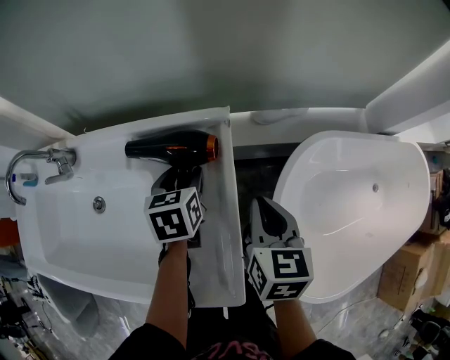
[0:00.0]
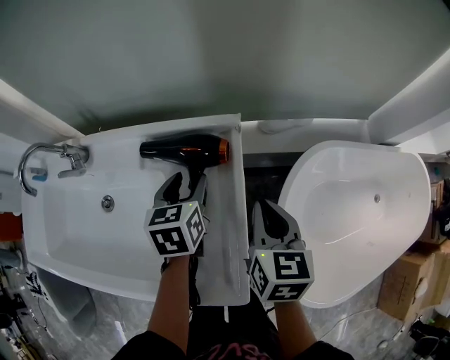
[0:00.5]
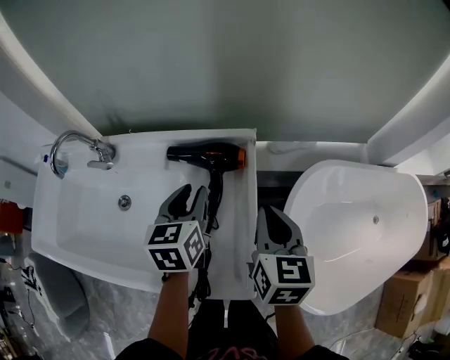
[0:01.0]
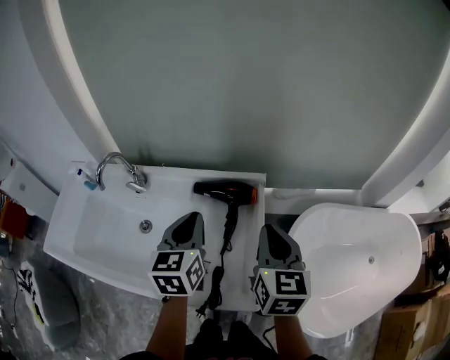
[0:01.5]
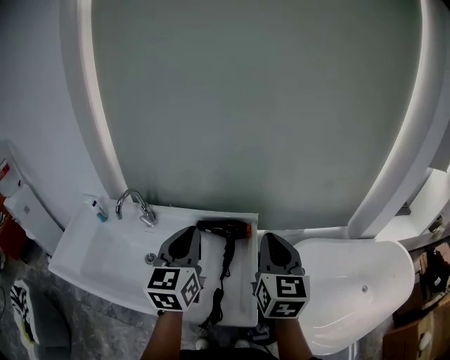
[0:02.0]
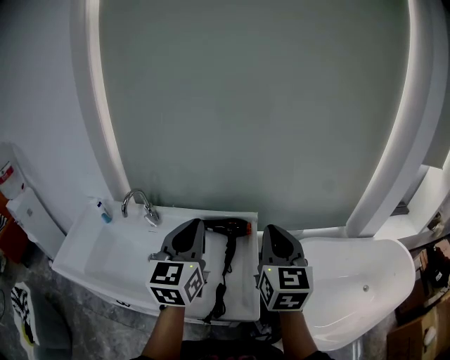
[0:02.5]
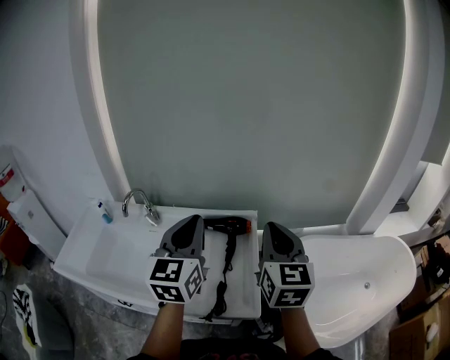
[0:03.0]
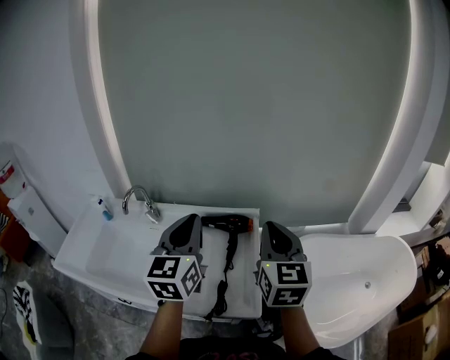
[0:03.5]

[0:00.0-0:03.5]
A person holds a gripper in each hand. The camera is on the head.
0:00.0 to 0:02.0: The right gripper heads upward, covering some 30 cm, and changes its angle by roughly 30 degrees. The left gripper travels upward and backward by some 40 cm, angles its fingers upward, by roughly 40 degrees, and closes up.
0:02.0 to 0:03.5: There are only small adjustments of the grippers.

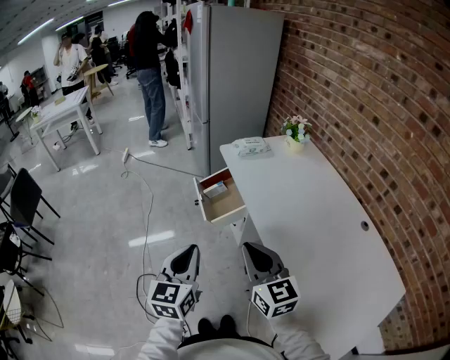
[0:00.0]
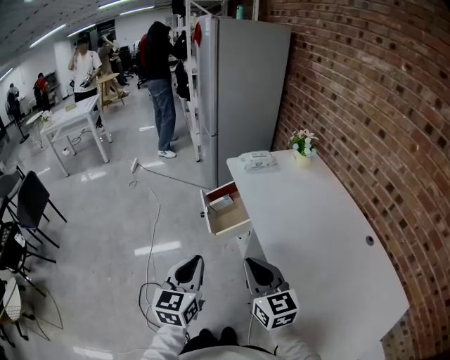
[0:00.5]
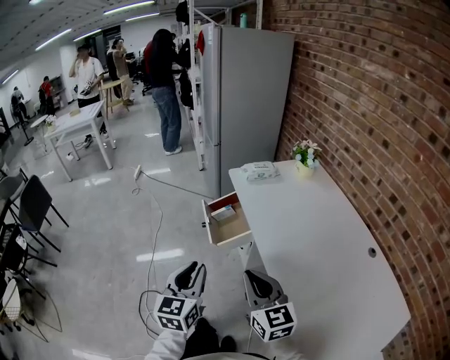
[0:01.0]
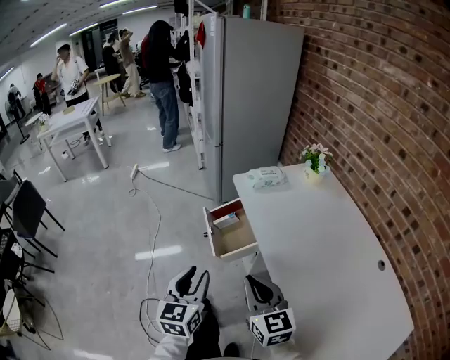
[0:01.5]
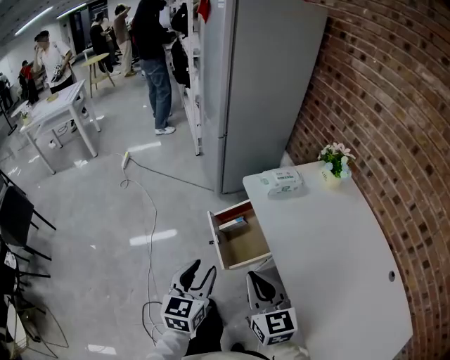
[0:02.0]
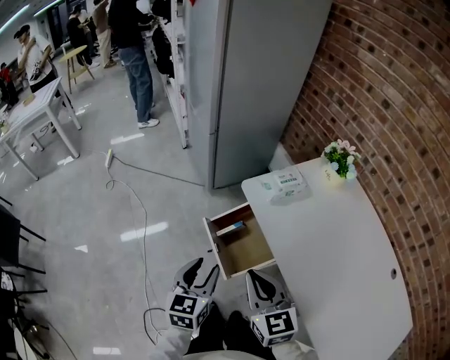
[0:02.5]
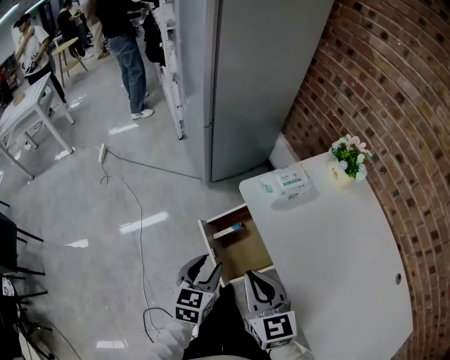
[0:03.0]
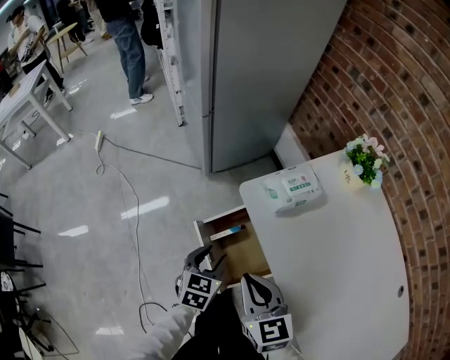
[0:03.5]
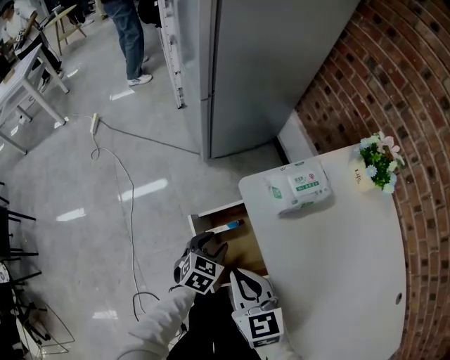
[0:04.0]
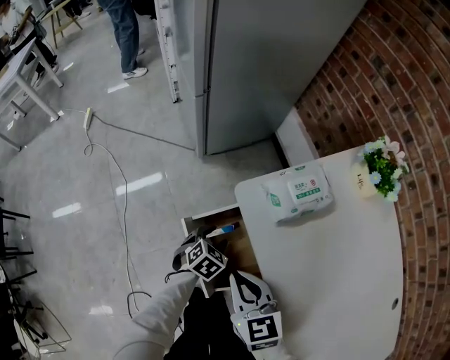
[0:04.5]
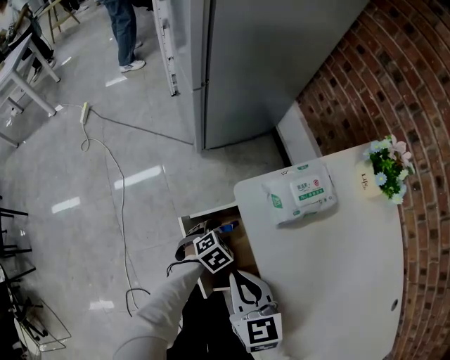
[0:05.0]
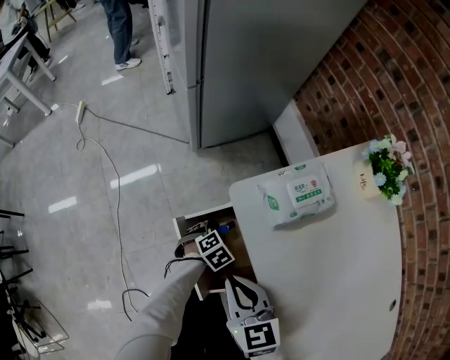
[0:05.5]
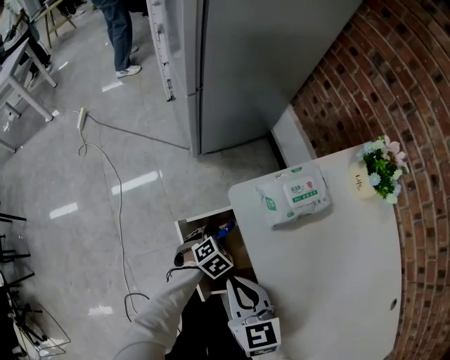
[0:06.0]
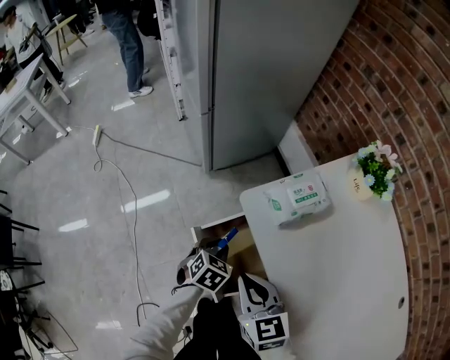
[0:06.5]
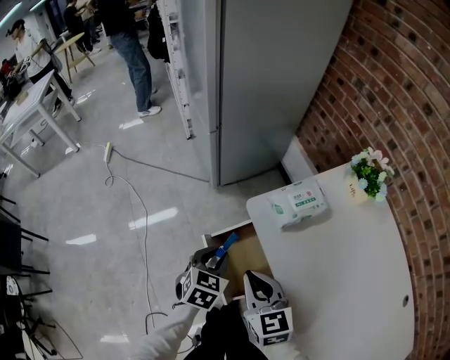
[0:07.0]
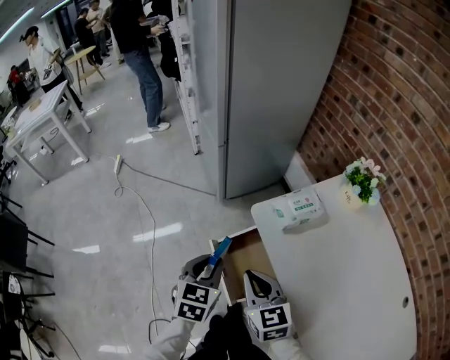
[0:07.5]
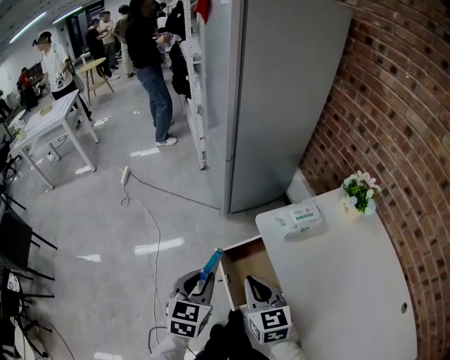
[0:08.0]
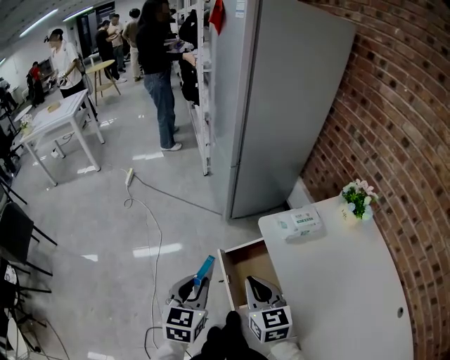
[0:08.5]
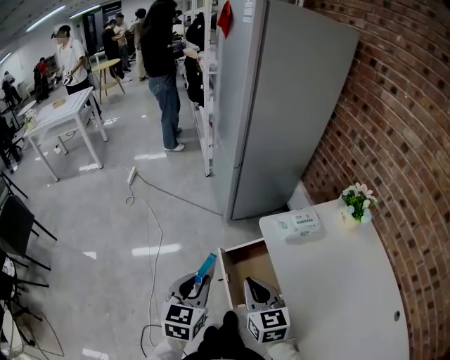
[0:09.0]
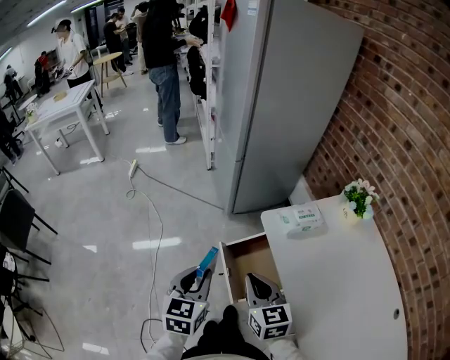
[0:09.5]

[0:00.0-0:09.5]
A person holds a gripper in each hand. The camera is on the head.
0:00.0 to 0:02.0: Both grippers travel together forward, about 25 cm. The left gripper opens its fingers.
0:02.0 to 0:04.0: The left gripper travels downward and forward by approximately 35 cm, and turns by about 40 degrees, while the right gripper heads forward and downward, covering about 25 cm.
0:04.0 to 0:05.5: The left gripper goes approximately 15 cm downward, and rotates about 30 degrees.
0:05.5 to 0:07.5: The left gripper heads upward, covering approximately 35 cm, and angles its fingers upward, by some 30 degrees. Meanwhile the right gripper moves upward, about 10 cm.
0:07.5 to 0:09.5: The left gripper moves backward, to the left and upward, approximately 15 cm. Meanwhile the right gripper shifts by about 5 cm.

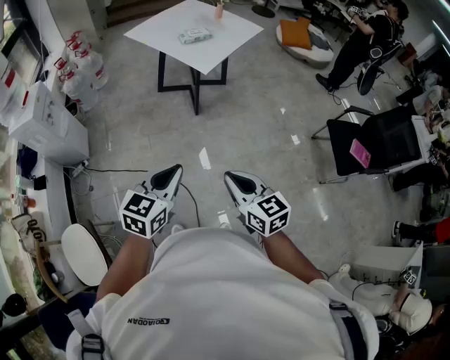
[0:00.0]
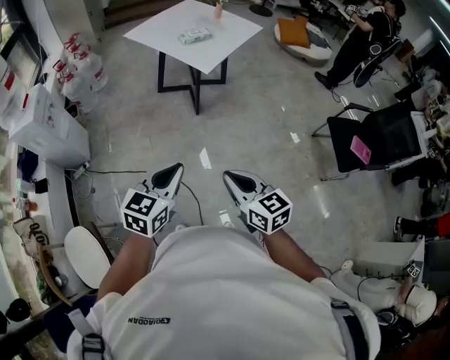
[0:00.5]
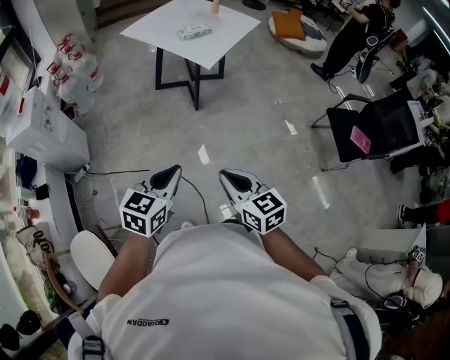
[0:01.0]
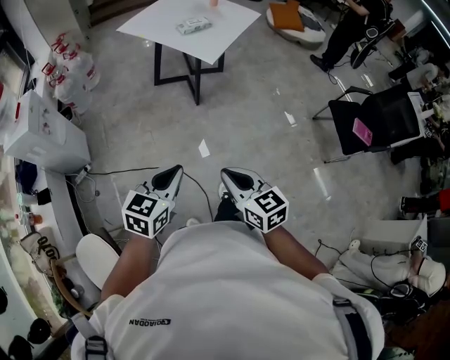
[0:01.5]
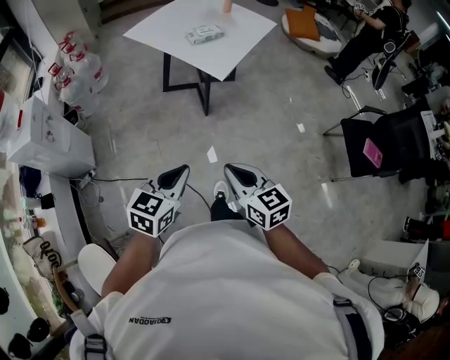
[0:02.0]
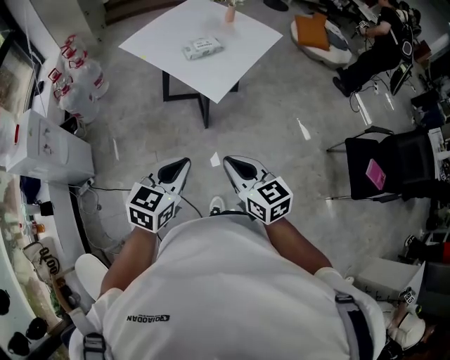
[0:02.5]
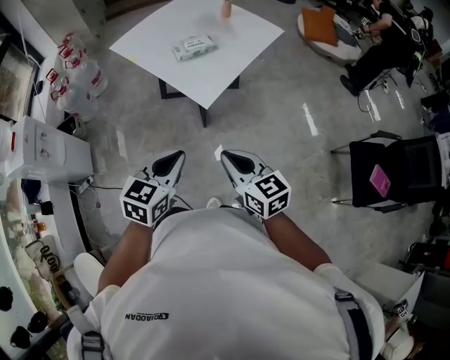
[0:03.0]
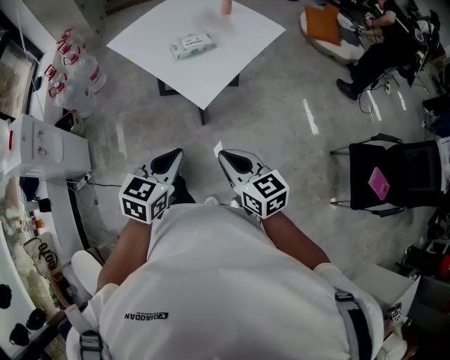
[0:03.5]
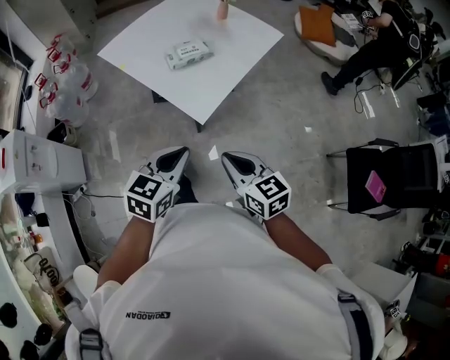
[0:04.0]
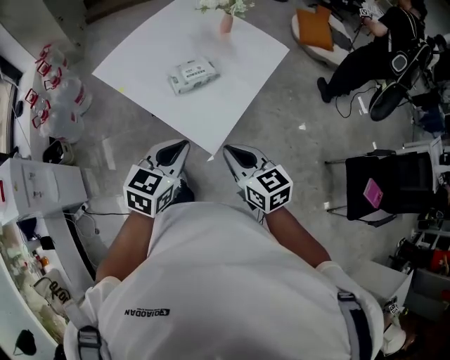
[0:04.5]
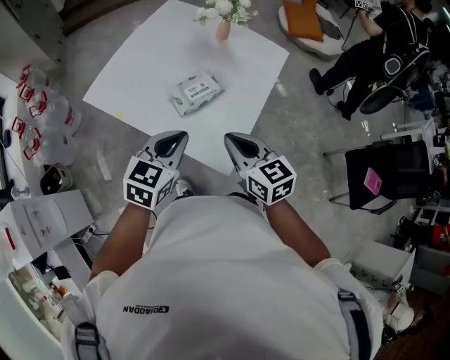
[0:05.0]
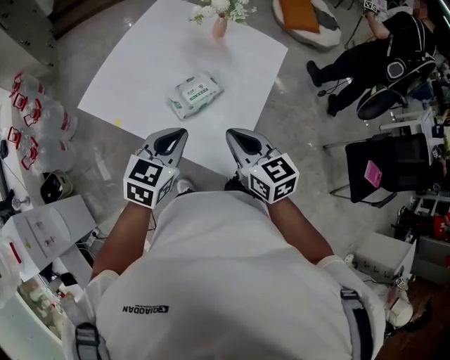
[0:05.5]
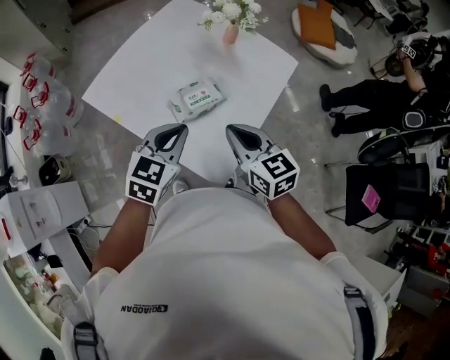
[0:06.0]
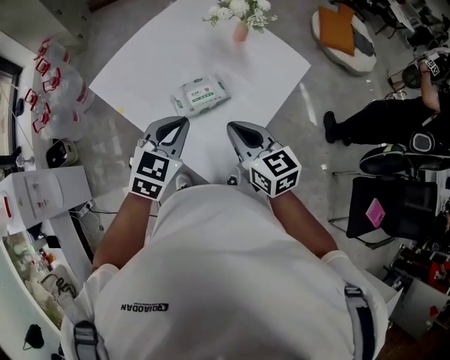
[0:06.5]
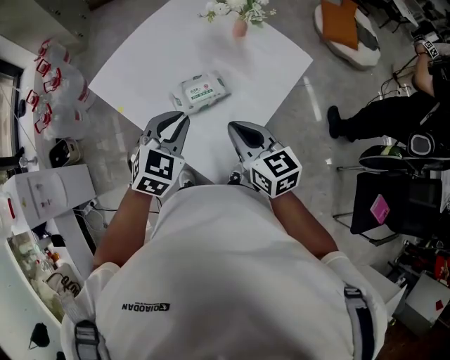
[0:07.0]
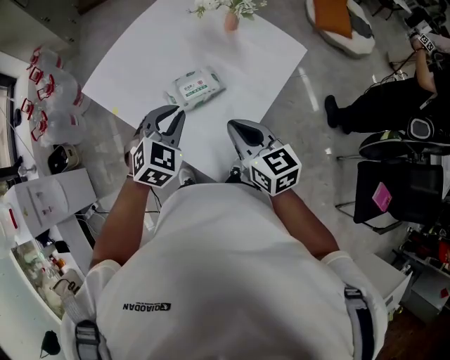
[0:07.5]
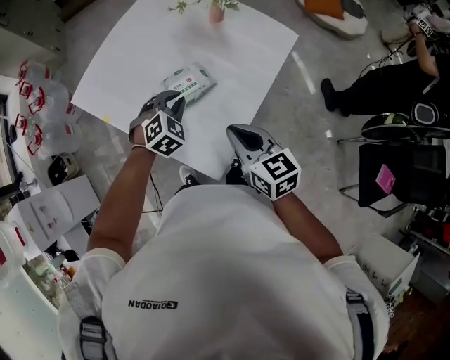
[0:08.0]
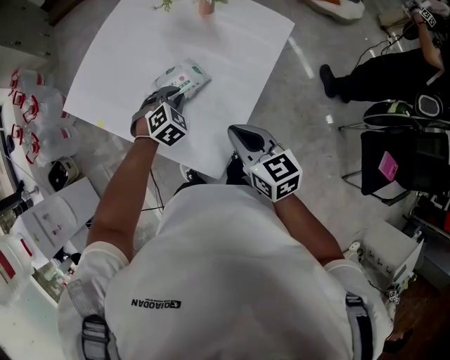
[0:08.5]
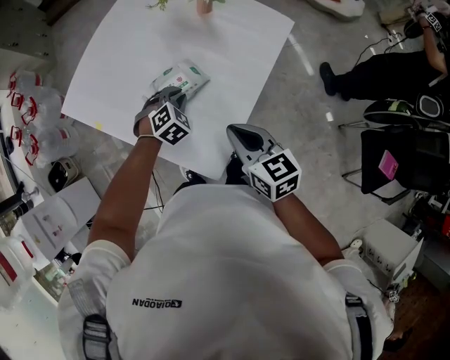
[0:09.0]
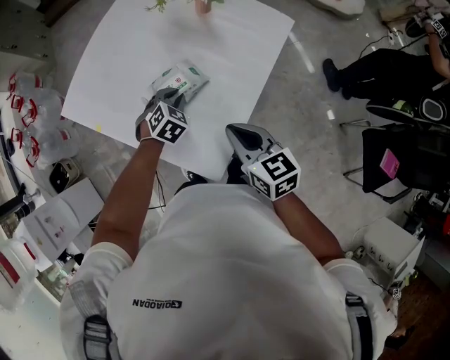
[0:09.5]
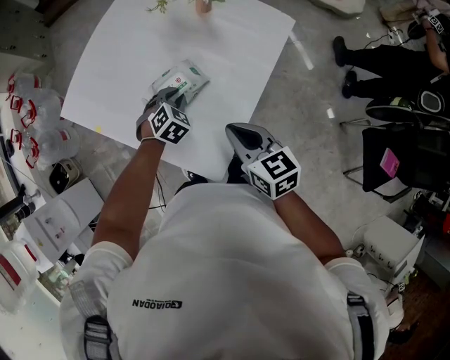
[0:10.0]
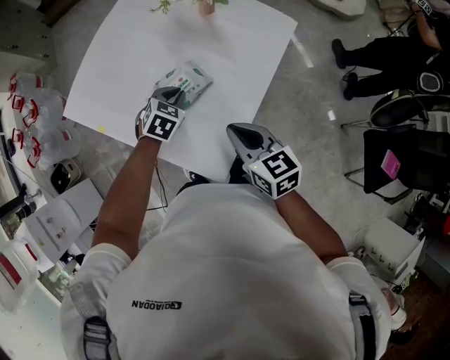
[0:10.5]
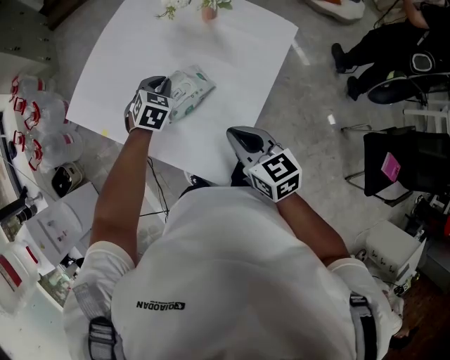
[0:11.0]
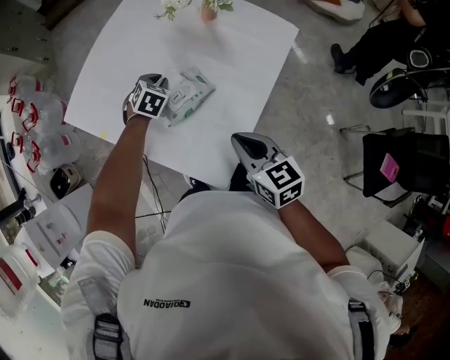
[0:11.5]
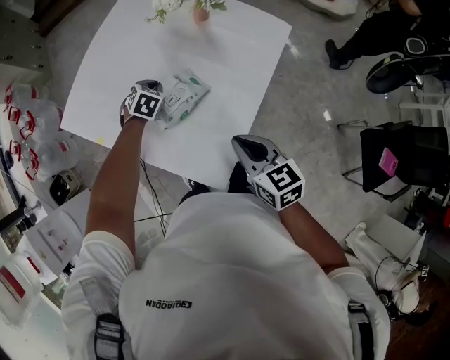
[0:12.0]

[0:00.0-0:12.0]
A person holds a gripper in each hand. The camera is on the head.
0:00.0 to 0:02.0: Both grippers travel together forward and to the left, roughly 15 cm.
0:02.0 to 0:04.0: The left gripper shifts some 35 cm forward and to the right, while the right gripper goes some 30 cm forward.
0:04.0 to 0:06.0: The grippers both shift forward by roughly 35 cm.
0:06.0 to 0:08.0: The right gripper shifts roughly 5 cm to the right and downward. The left gripper is displaced downward and forward by approximately 15 cm, and rotates roughly 40 degrees.
0:08.0 to 0:10.0: The left gripper travels downward by some 10 cm.
0:10.0 to 0:12.0: The left gripper shifts some 10 cm forward and to the left.

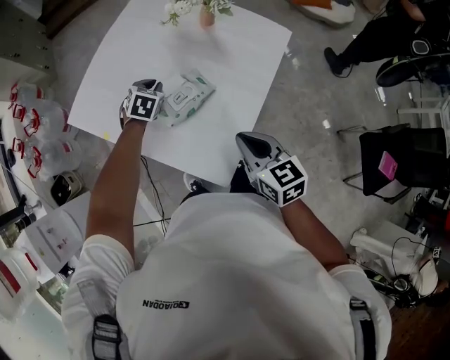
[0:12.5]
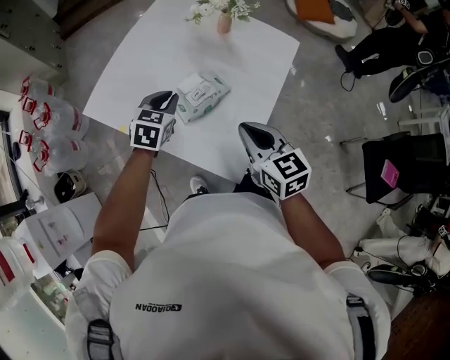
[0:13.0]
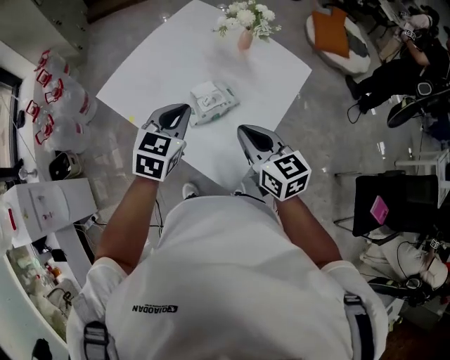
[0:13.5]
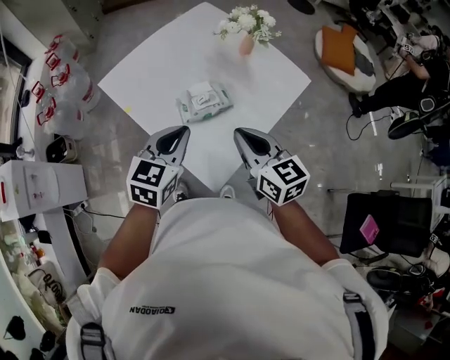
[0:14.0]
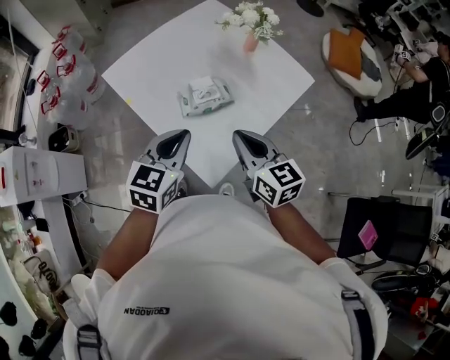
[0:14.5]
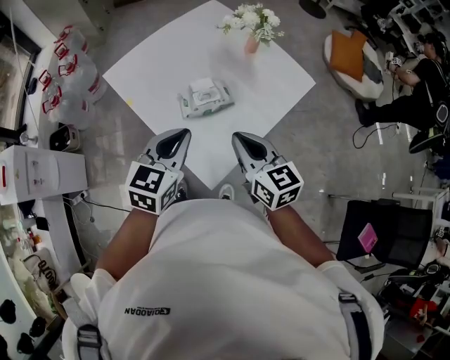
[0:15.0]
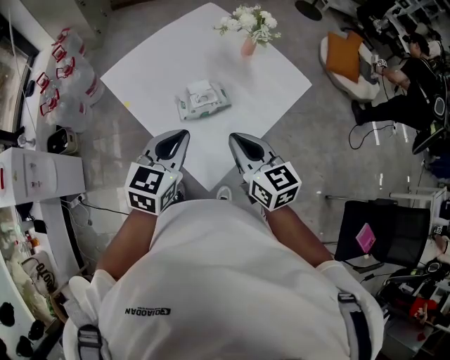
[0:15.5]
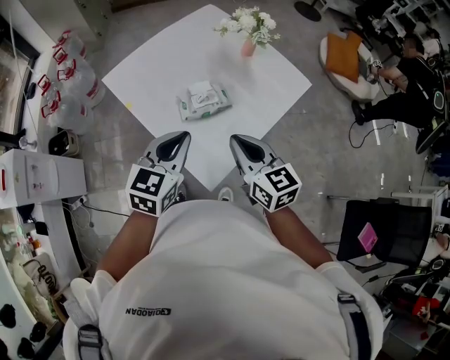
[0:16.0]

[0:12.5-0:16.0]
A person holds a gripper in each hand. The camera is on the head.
0:12.5 to 0:14.5: The right gripper travels upward by some 5 cm. Meanwhile the left gripper heads backward and upward, covering roughly 35 cm, and swivels roughly 40 degrees.
0:14.5 to 0:16.0: The grippers move only a little.
